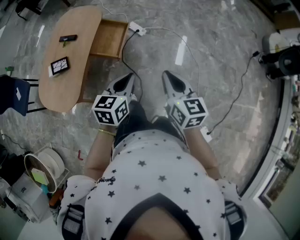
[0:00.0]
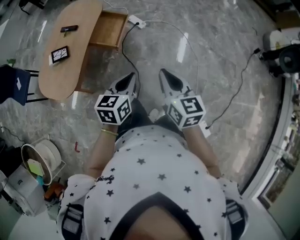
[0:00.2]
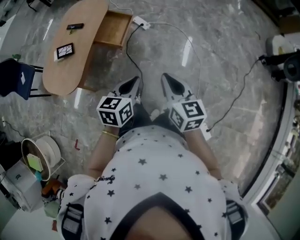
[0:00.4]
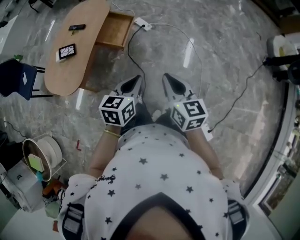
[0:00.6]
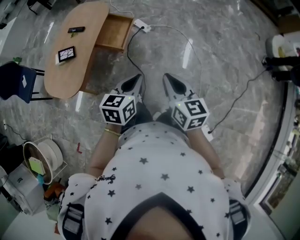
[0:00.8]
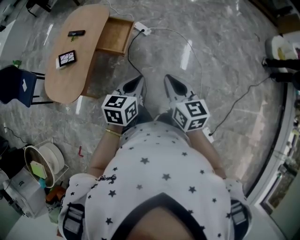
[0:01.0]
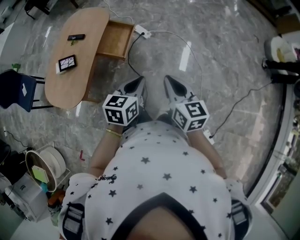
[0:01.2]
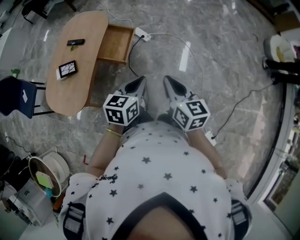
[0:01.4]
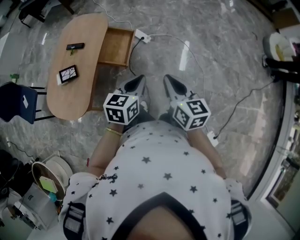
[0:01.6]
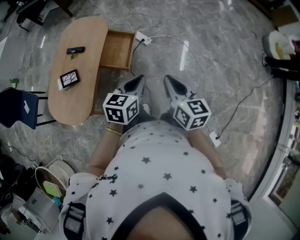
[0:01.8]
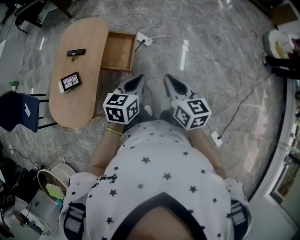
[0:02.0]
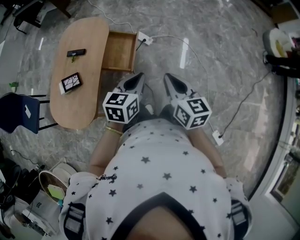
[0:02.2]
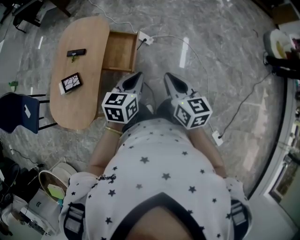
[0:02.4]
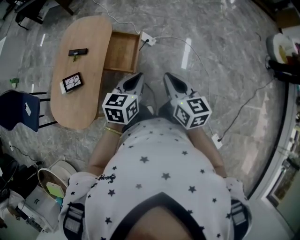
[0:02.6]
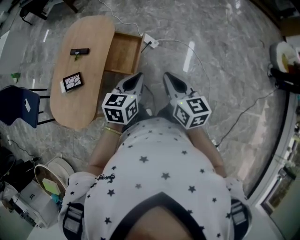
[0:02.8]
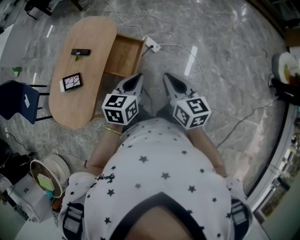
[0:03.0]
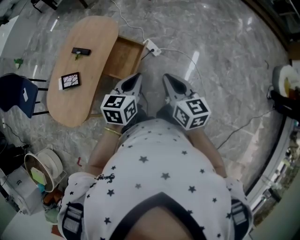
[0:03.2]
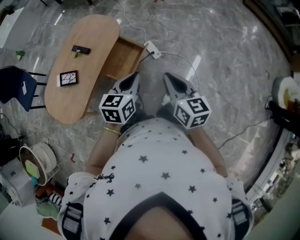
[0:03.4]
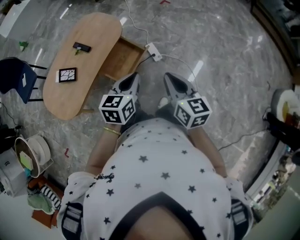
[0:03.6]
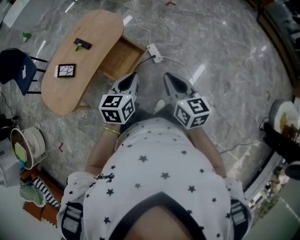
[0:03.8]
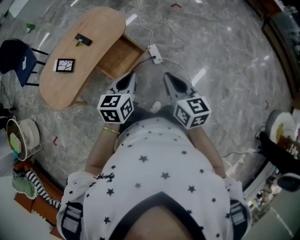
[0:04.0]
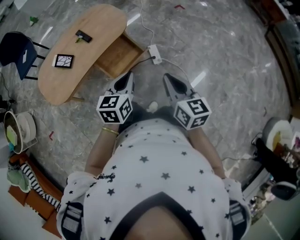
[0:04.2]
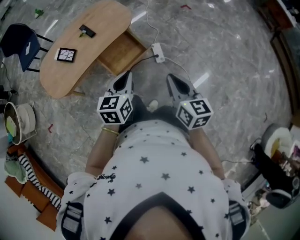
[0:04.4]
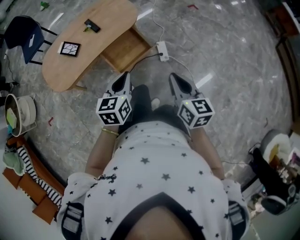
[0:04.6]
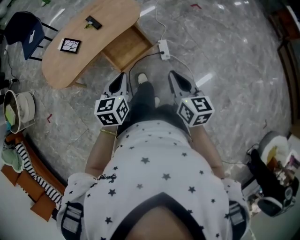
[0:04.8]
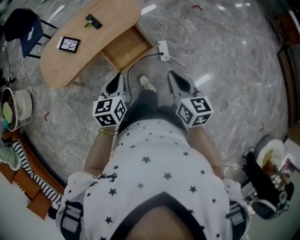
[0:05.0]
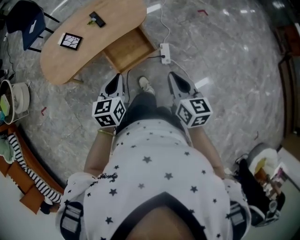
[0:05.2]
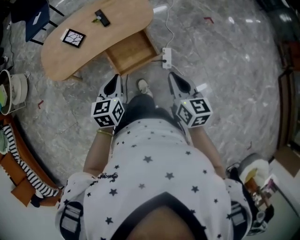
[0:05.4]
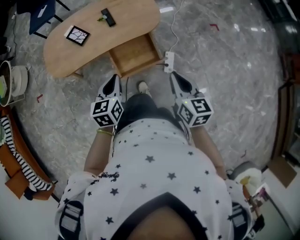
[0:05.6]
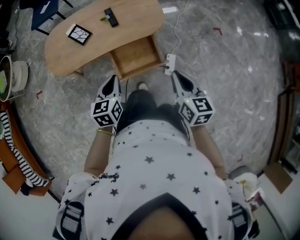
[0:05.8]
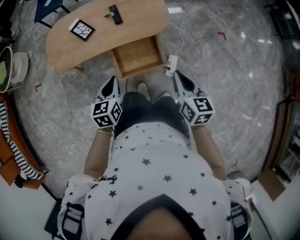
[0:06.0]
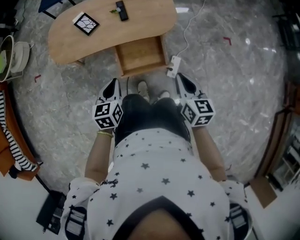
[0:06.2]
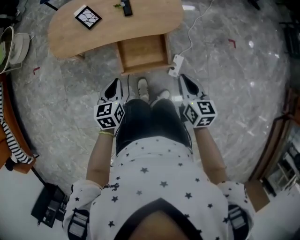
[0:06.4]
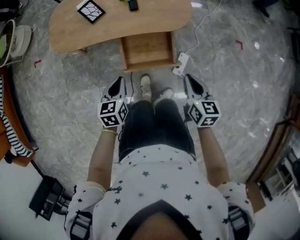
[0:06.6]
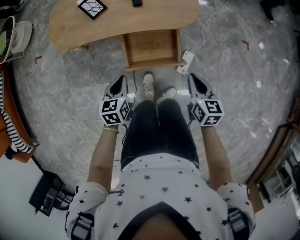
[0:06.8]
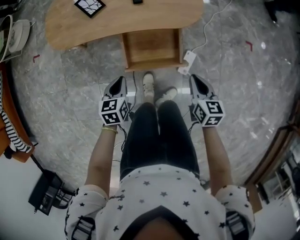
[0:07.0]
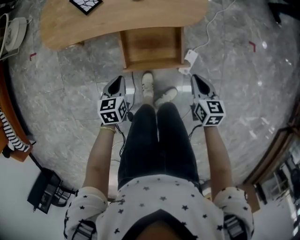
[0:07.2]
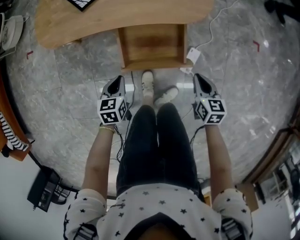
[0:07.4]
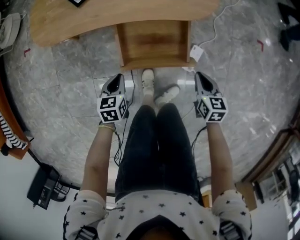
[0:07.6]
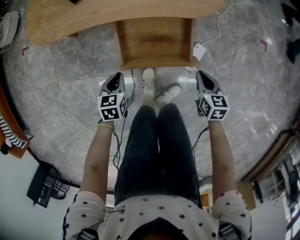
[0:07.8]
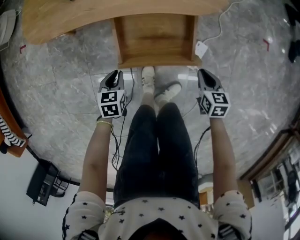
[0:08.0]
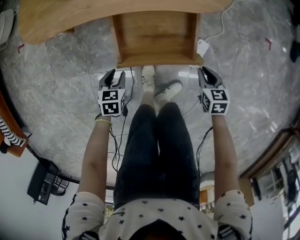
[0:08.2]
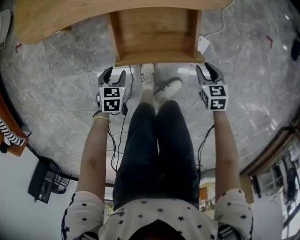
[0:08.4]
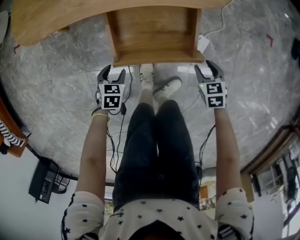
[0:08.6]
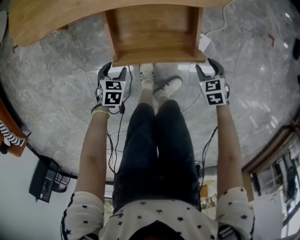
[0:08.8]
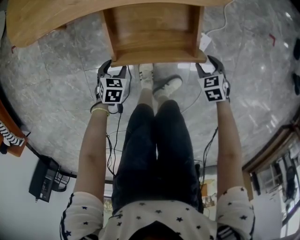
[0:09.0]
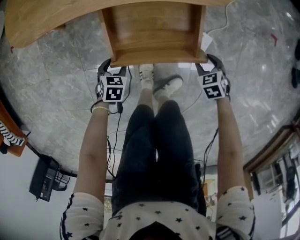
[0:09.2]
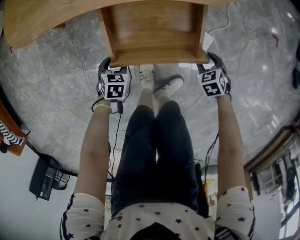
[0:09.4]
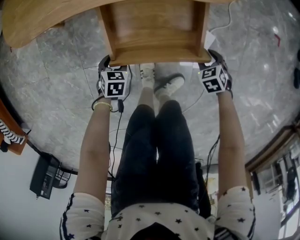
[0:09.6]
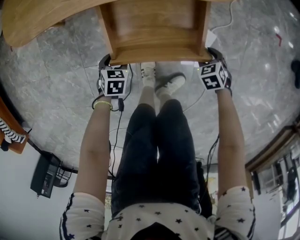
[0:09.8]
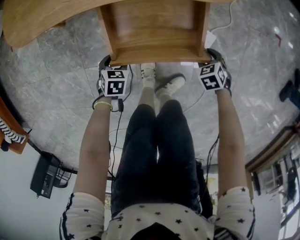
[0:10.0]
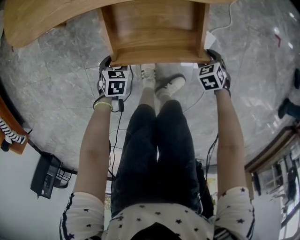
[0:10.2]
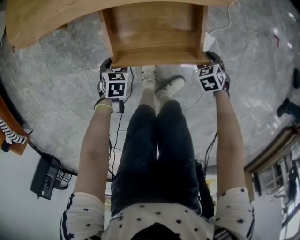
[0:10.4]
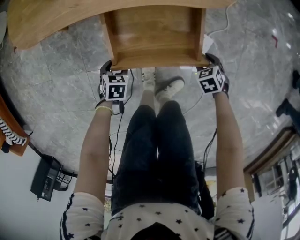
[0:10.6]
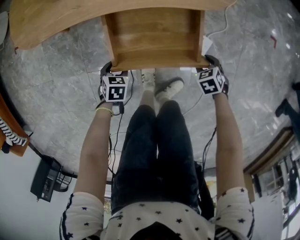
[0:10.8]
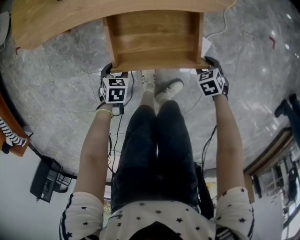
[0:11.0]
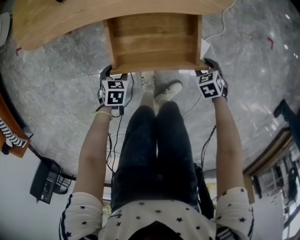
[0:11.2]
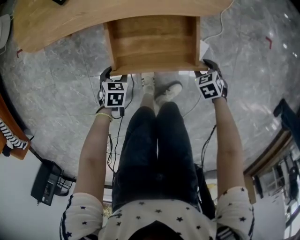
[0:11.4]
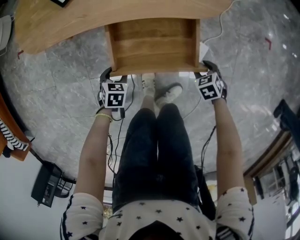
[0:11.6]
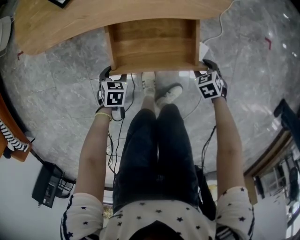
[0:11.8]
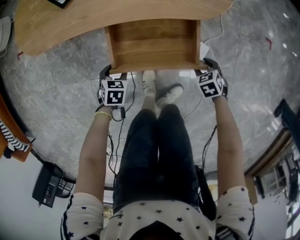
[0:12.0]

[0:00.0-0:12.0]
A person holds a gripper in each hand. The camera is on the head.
0.0 to 1.6 s: The right gripper travels backward and back again, some 10 cm each way. Meanwhile the left gripper travels backward and back again, roughly 10 cm each way.
1.6 to 3.0 s: The grippers both shift forward by some 15 cm.
3.0 to 4.4 s: The left gripper moves some 10 cm, and rotates some 40 degrees, while the right gripper ends up about 20 cm from where it was, and changes its angle by some 30 degrees.
4.4 to 6.0 s: The left gripper moves some 15 cm, and turns by approximately 30 degrees. The right gripper shifts by some 25 cm, and swivels roughly 20 degrees.
6.0 to 7.6 s: Both grippers travel together downward, about 30 cm. The right gripper rotates about 20 degrees; the left gripper changes its angle by some 20 degrees.
7.6 to 9.0 s: Both grippers move downward, about 15 cm. The left gripper turns by roughly 30 degrees, and opens up; the right gripper changes its angle by about 40 degrees, and opens up.
9.0 to 10.4 s: The grippers stay close to where they were, moving slightly.
10.4 to 12.0 s: The right gripper moves about 5 cm. Meanwhile the left gripper changes place by approximately 5 cm.

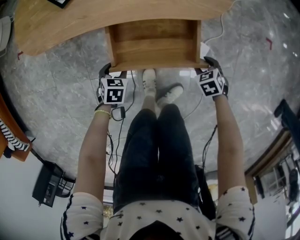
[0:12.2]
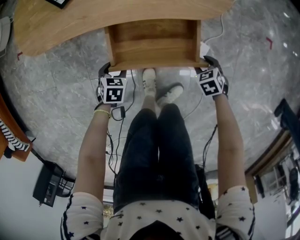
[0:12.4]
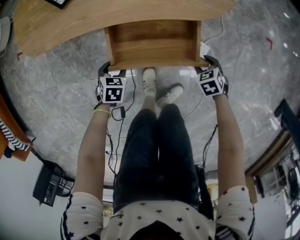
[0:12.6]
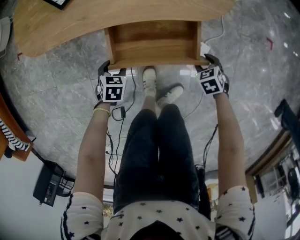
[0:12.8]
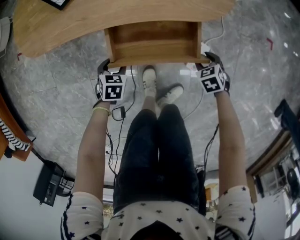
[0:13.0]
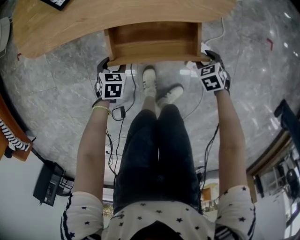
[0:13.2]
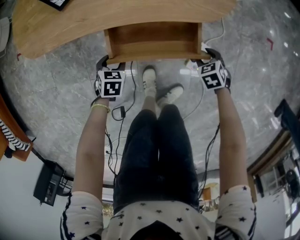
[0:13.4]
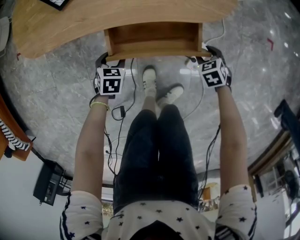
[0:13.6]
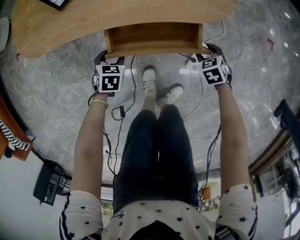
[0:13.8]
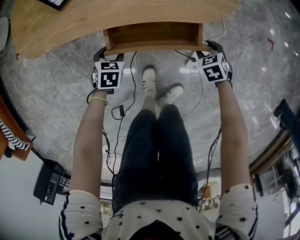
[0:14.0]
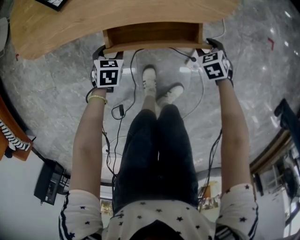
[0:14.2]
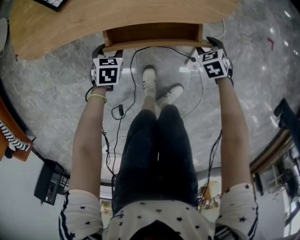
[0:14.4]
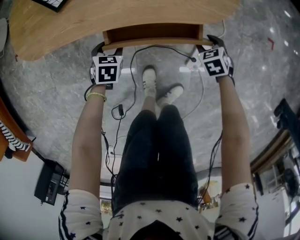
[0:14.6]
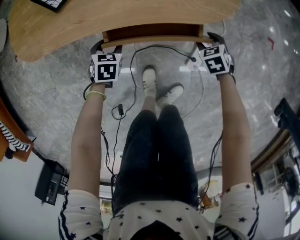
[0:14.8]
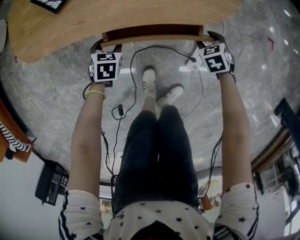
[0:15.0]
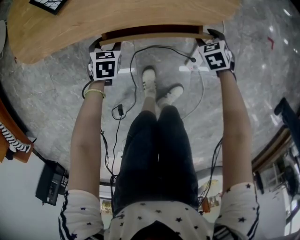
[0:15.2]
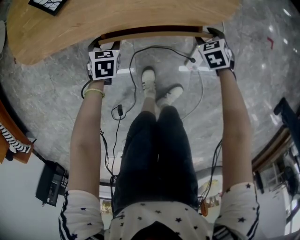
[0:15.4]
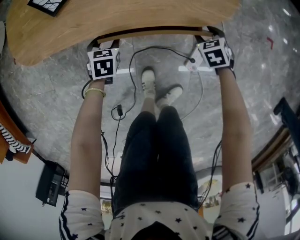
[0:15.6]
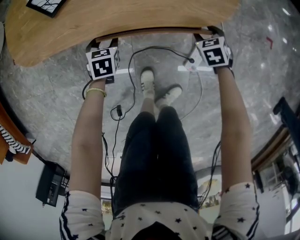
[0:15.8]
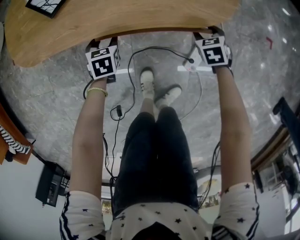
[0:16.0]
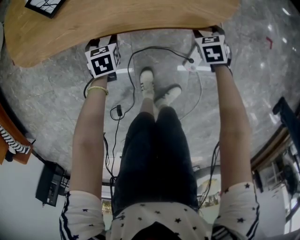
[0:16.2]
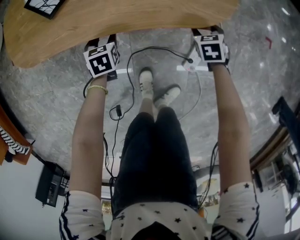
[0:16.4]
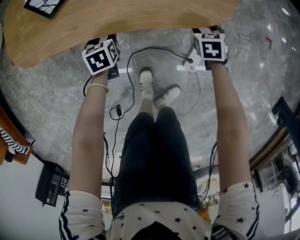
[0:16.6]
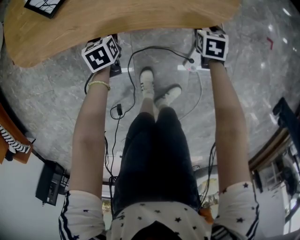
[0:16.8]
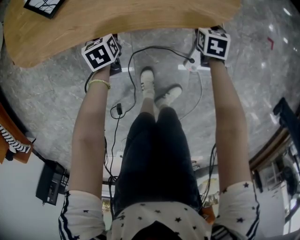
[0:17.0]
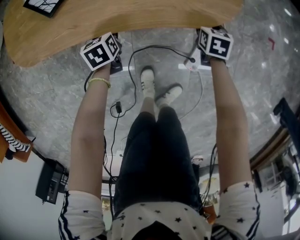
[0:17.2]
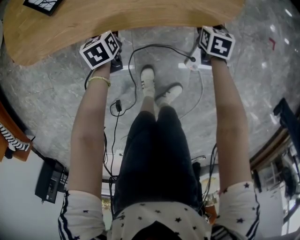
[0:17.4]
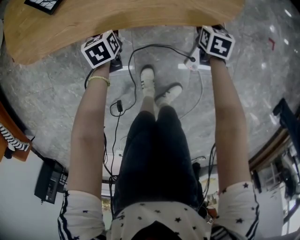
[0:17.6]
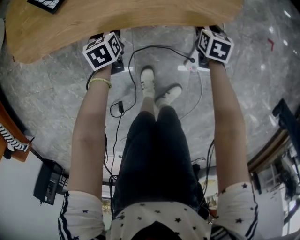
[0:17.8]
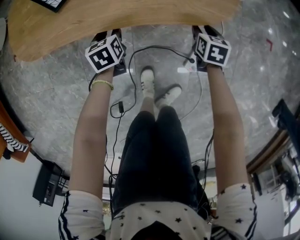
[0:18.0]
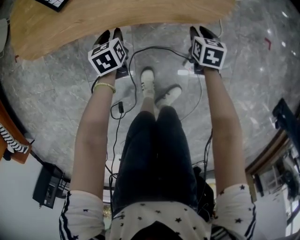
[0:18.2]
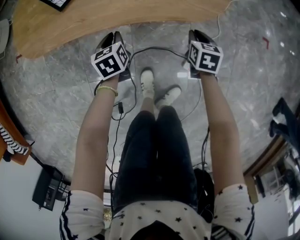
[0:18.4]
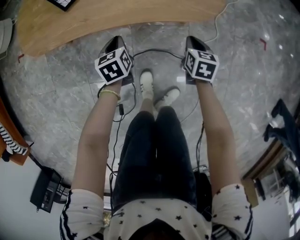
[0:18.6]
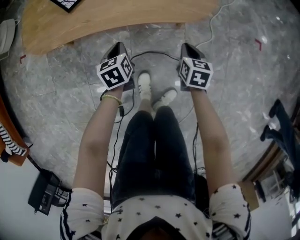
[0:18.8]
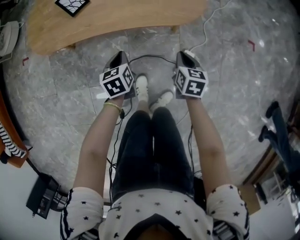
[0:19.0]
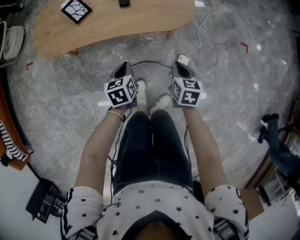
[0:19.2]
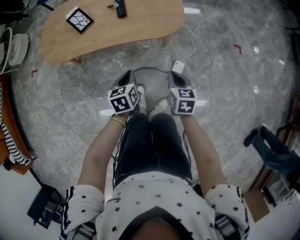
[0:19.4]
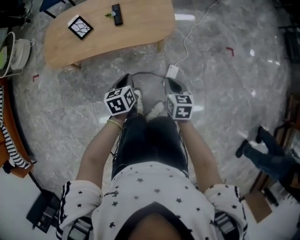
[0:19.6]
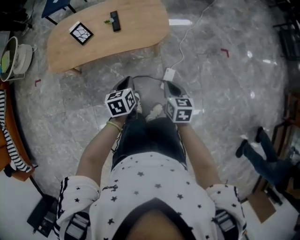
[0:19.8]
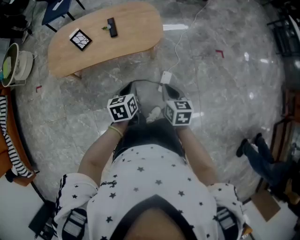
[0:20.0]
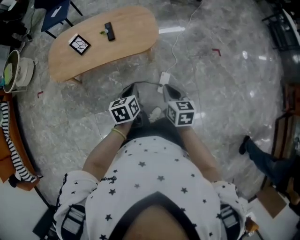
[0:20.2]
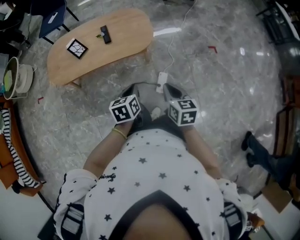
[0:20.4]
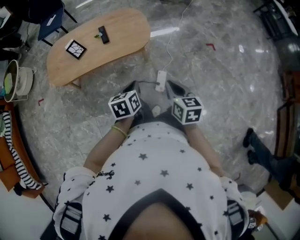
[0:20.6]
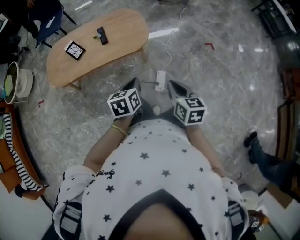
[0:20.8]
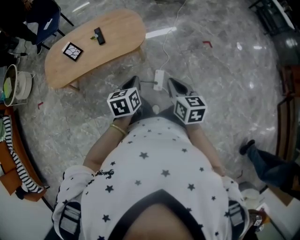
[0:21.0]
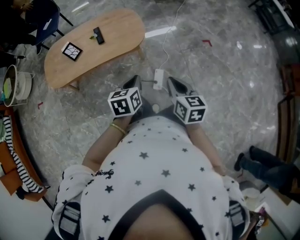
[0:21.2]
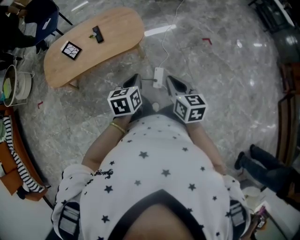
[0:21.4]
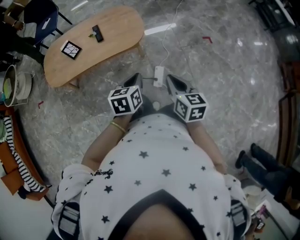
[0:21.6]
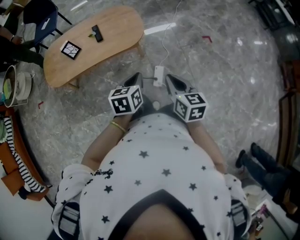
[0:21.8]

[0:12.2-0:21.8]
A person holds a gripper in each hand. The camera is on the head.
12.2 to 13.8 s: The right gripper changes place by some 10 cm. The left gripper ends up some 5 cm from where it was.
13.8 to 15.4 s: The right gripper shifts by roughly 10 cm. The left gripper moves roughly 10 cm.
15.4 to 17.0 s: The left gripper shifts by about 5 cm, and changes its angle by roughly 30 degrees. The right gripper shifts by approximately 5 cm, and changes its angle by about 30 degrees.
17.0 to 18.6 s: The left gripper moves upward and backward, approximately 10 cm, and closes up. The right gripper moves backward and upward, about 10 cm, and closes up.
18.6 to 20.2 s: The left gripper shifts approximately 40 cm upward, backward and to the right. Meanwhile the right gripper goes roughly 40 cm upward and backward.
20.2 to 21.8 s: The left gripper moves to the right and upward, approximately 10 cm. The right gripper heads upward and to the right, covering approximately 10 cm.

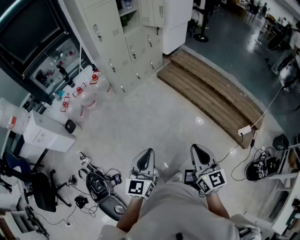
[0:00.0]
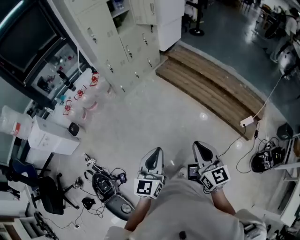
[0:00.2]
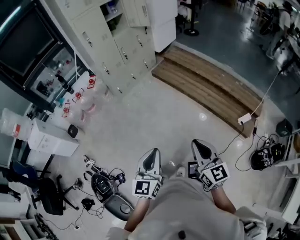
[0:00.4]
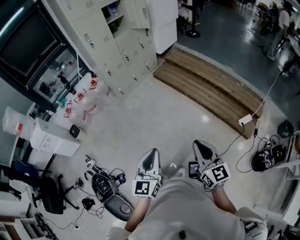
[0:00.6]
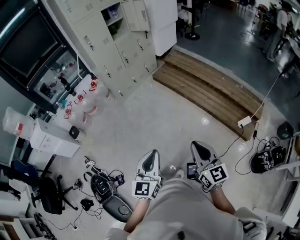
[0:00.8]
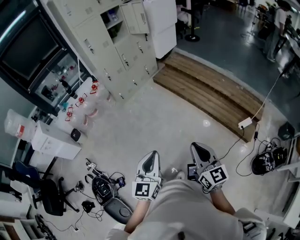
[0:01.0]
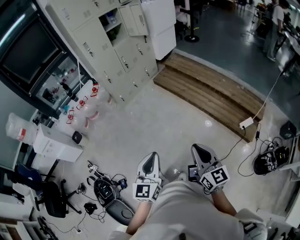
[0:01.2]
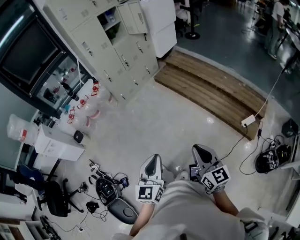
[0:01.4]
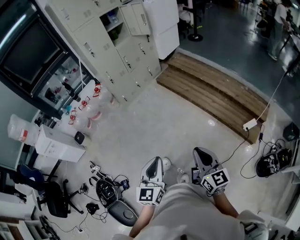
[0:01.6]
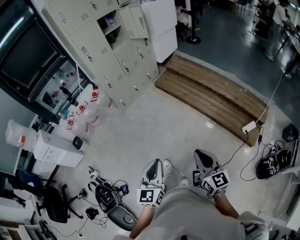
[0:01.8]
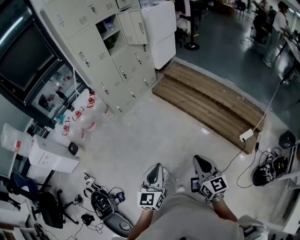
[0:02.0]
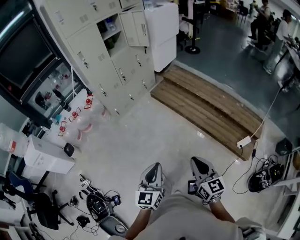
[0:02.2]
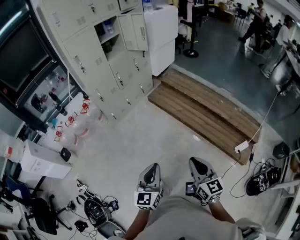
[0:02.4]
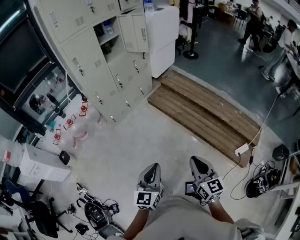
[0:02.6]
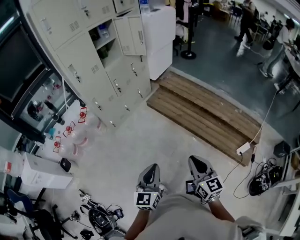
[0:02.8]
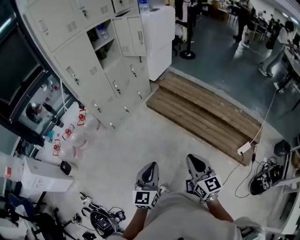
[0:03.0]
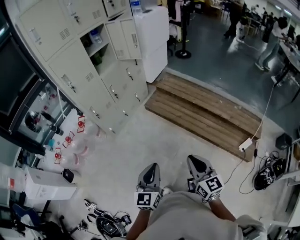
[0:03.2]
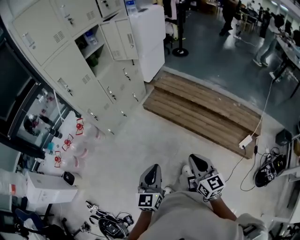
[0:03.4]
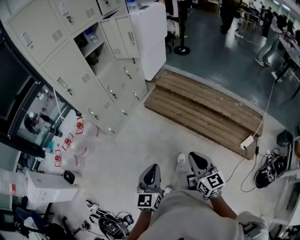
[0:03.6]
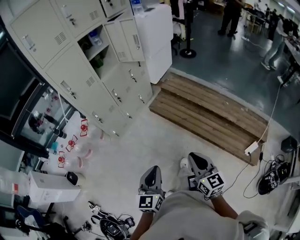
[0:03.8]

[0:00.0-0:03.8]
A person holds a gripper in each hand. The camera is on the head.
0.0 to 1.2 s: Both grippers travel together to the right and backward, approximately 15 cm.
1.2 to 2.6 s: The grippers both shift forward by approximately 25 cm.
2.6 to 3.8 s: The grippers both shift forward by roughly 15 cm.
